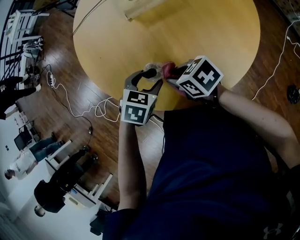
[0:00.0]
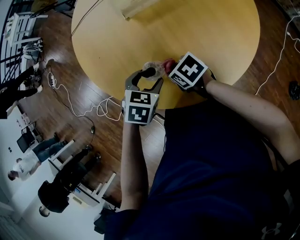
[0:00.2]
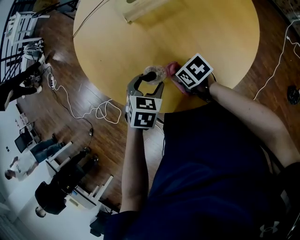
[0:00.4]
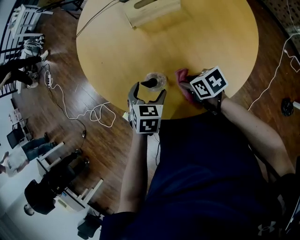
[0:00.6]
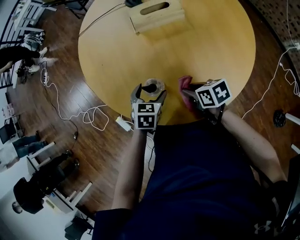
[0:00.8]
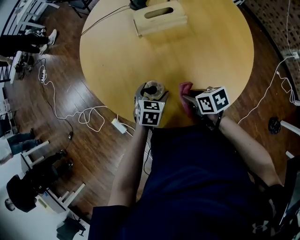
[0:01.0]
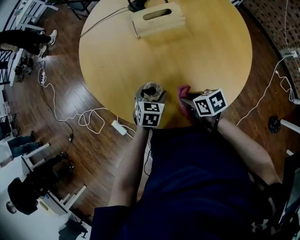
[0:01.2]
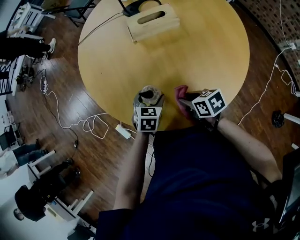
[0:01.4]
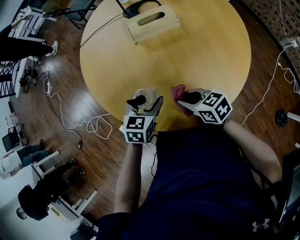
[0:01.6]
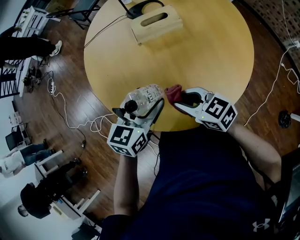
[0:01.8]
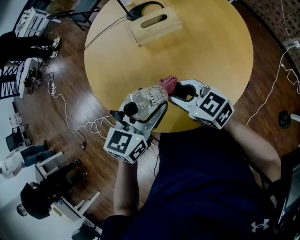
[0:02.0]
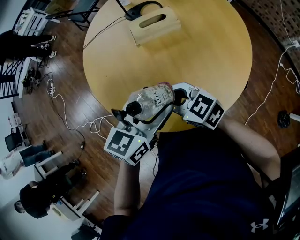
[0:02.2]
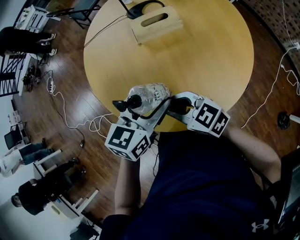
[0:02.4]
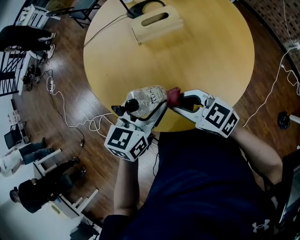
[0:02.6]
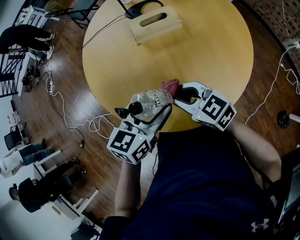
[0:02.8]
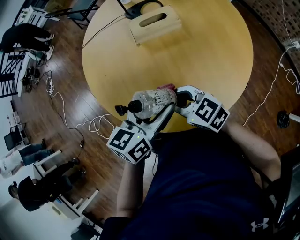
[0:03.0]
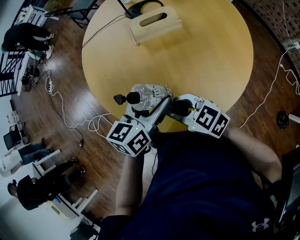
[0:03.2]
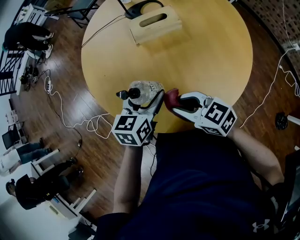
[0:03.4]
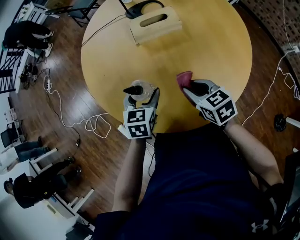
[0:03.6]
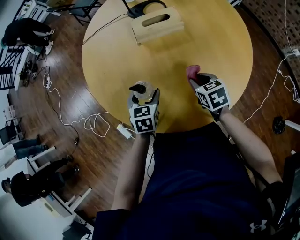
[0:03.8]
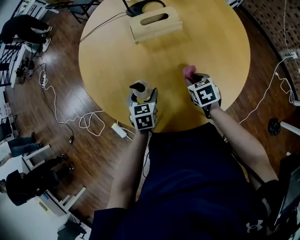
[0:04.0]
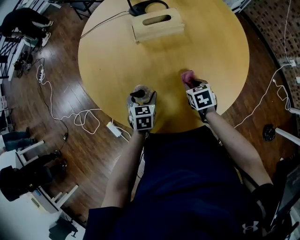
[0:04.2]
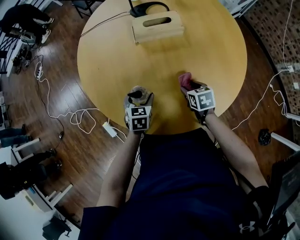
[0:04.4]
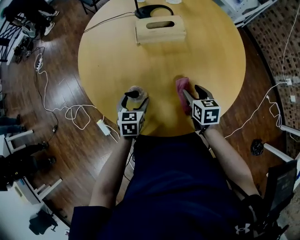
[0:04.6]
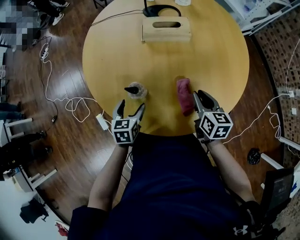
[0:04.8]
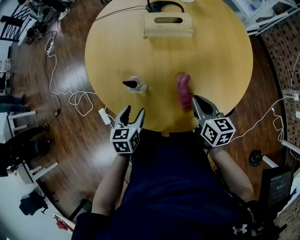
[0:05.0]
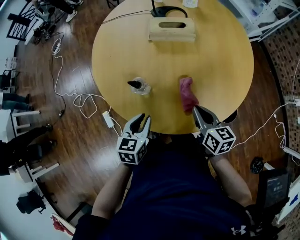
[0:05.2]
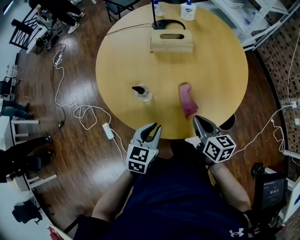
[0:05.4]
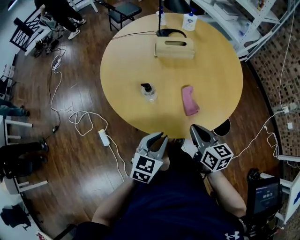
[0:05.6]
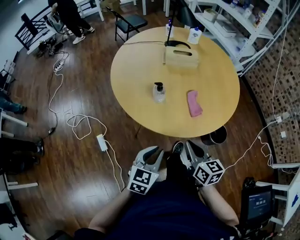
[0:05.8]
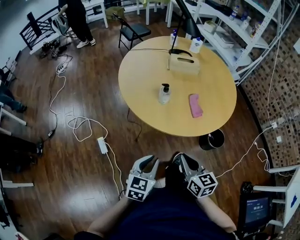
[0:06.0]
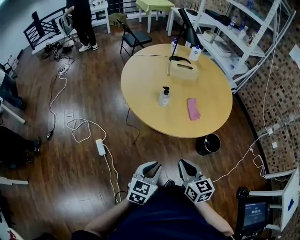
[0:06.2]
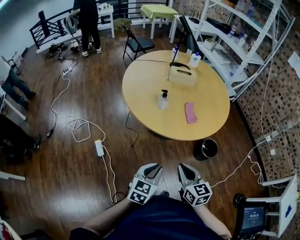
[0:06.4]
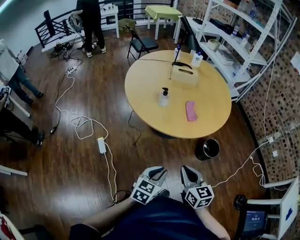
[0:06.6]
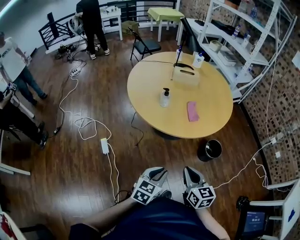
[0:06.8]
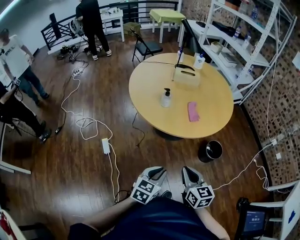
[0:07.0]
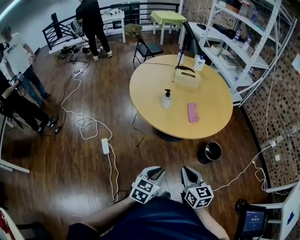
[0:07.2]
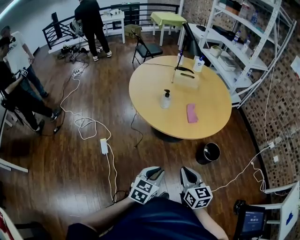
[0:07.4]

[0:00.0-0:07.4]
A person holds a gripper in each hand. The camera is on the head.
0:00.0 to 0:01.4: The left gripper is displaced downward by about 5 cm. Meanwhile the right gripper travels to the right and downward by roughly 5 cm.
0:01.4 to 0:03.0: The right gripper moves upward and to the left, roughly 15 cm, and turns by some 40 degrees. The left gripper goes some 20 cm upward, and angles its fingers upward, by some 30 degrees.
0:03.0 to 0:04.4: The left gripper is displaced downward by roughly 25 cm, and turns by approximately 40 degrees. The right gripper is displaced downward and to the right by about 25 cm, swivels about 40 degrees, and opens its fingers.
0:04.4 to 0:06.0: The left gripper moves backward and upward, approximately 35 cm, turns by approximately 20 degrees, and closes, while the right gripper heads backward, upward and to the left, covering roughly 40 cm, points its fingers some 30 degrees further upward, and closes its fingers.
0:06.0 to 0:07.4: Both grippers move backward and to the right, approximately 10 cm.

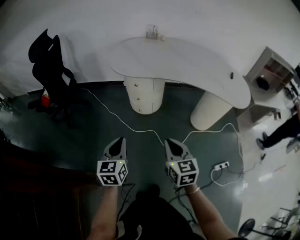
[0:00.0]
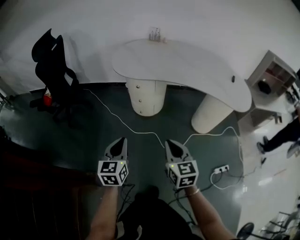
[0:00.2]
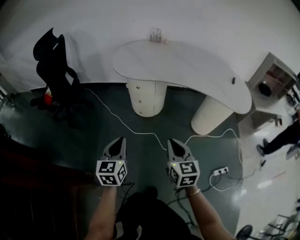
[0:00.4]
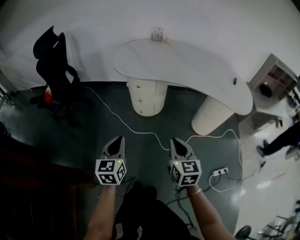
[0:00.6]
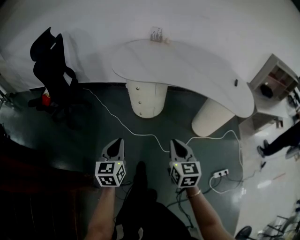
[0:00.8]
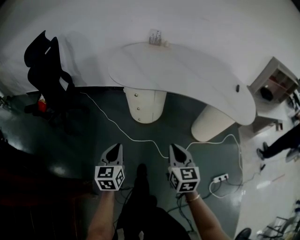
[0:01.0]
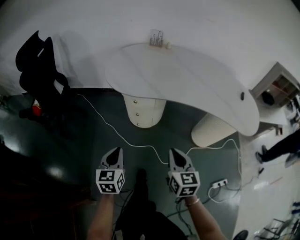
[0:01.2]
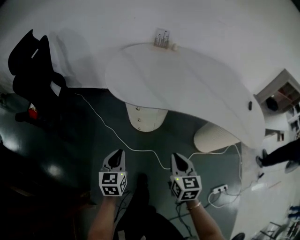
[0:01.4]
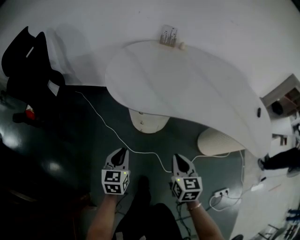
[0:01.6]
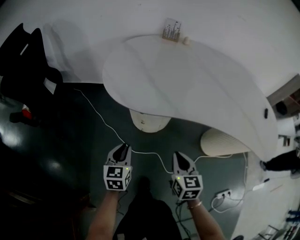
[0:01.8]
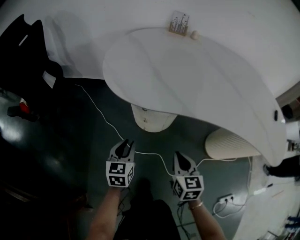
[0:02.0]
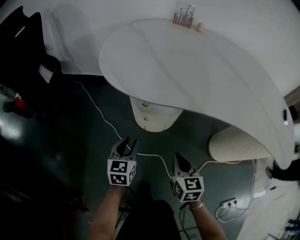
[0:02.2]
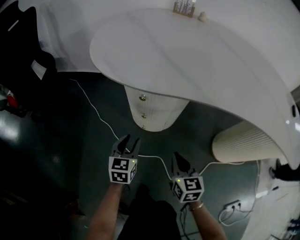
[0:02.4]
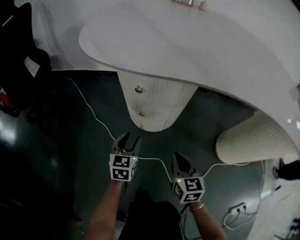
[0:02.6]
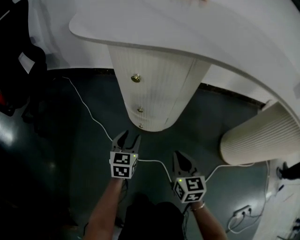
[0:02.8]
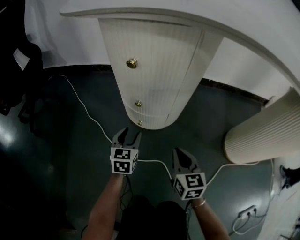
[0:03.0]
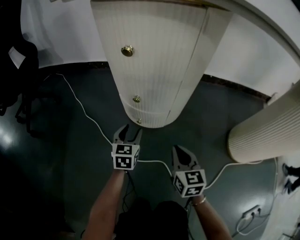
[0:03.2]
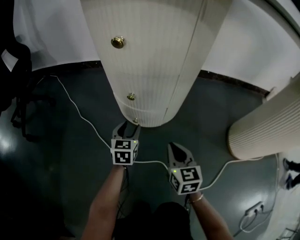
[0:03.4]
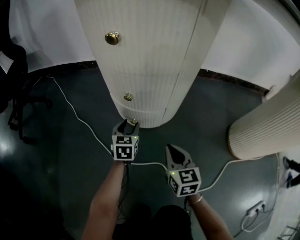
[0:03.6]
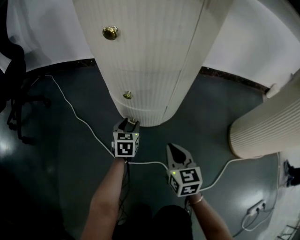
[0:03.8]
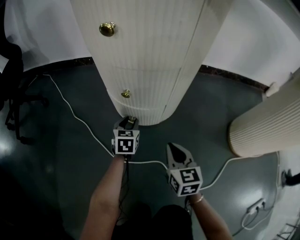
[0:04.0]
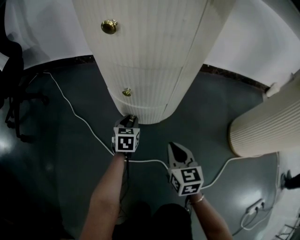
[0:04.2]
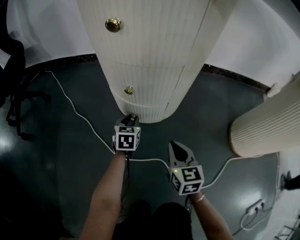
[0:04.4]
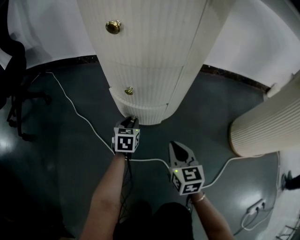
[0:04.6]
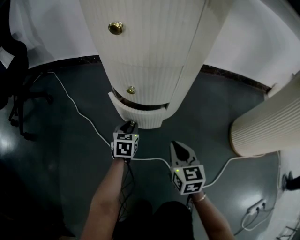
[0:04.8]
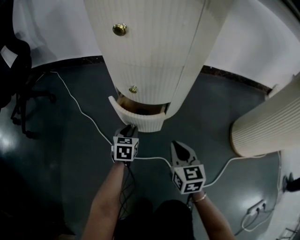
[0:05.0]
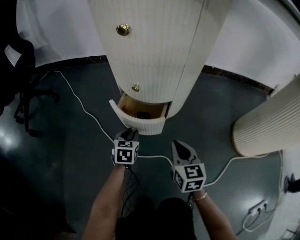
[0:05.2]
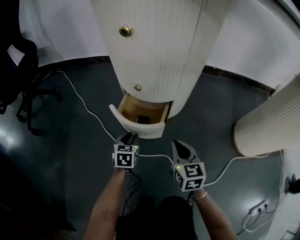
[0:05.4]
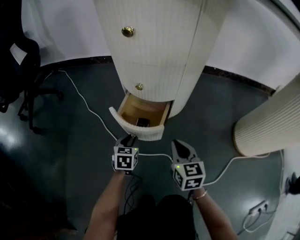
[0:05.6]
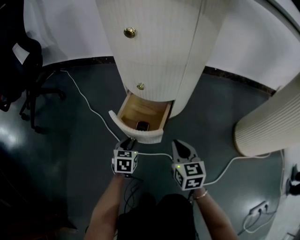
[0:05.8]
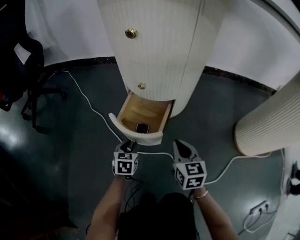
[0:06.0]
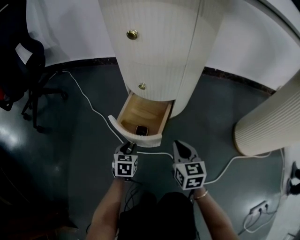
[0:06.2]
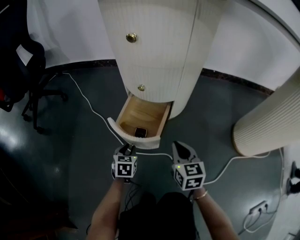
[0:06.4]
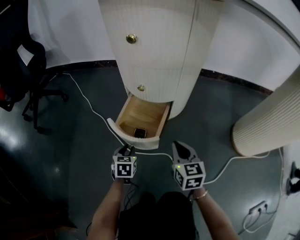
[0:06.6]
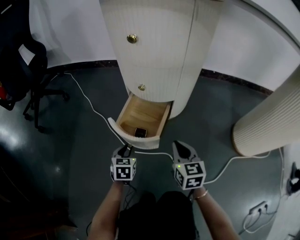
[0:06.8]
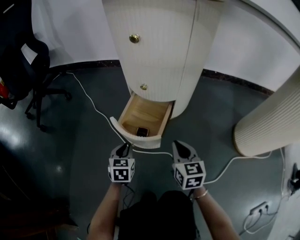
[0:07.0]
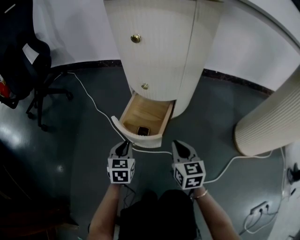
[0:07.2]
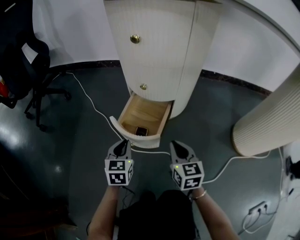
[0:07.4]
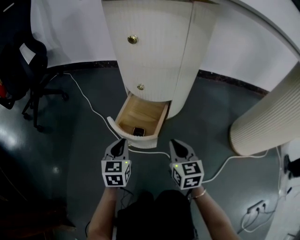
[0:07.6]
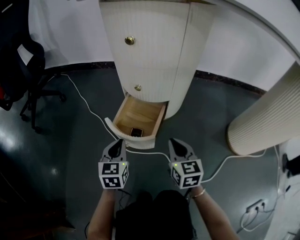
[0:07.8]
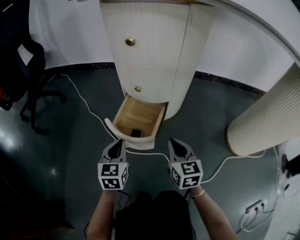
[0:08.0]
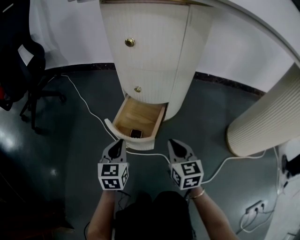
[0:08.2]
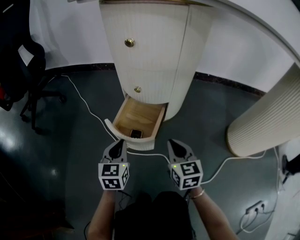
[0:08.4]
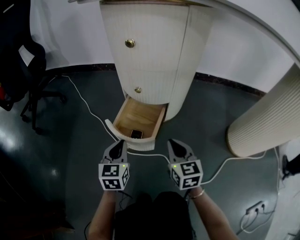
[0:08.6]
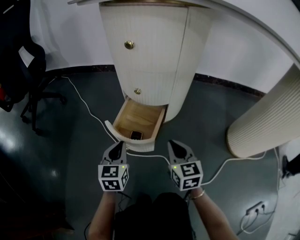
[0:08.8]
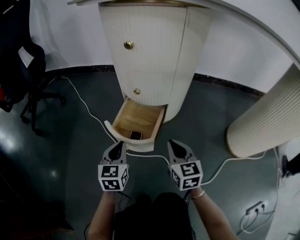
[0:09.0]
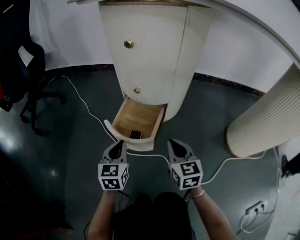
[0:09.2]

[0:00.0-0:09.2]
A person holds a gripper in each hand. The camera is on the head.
0:00.0 to 0:01.6: The left gripper shifts about 30 cm forward and downward. Meanwhile the right gripper is displaced forward by about 25 cm.
0:01.6 to 0:03.0: The grippers both shift downward by roughly 40 cm. The left gripper opens its fingers.
0:03.0 to 0:04.6: The left gripper heads downward and forward, covering about 15 cm, and closes up. The right gripper travels downward by roughly 10 cm.
0:04.6 to 0:06.2: The left gripper moves backward, some 15 cm.
0:06.2 to 0:07.6: The left gripper is displaced upward by some 15 cm.
0:07.6 to 0:09.2: The grippers move only a little.

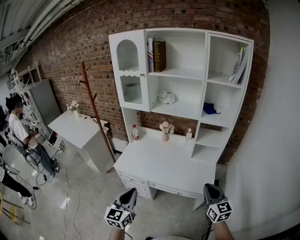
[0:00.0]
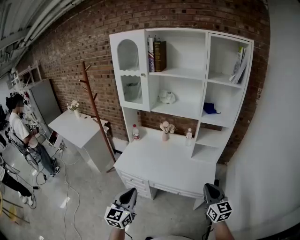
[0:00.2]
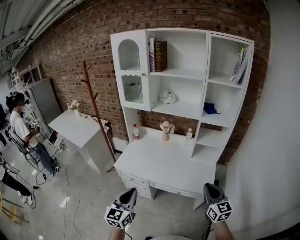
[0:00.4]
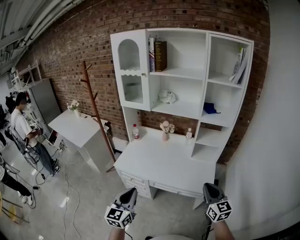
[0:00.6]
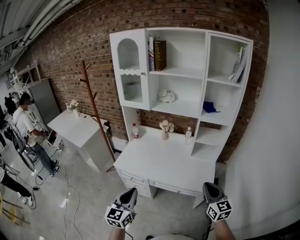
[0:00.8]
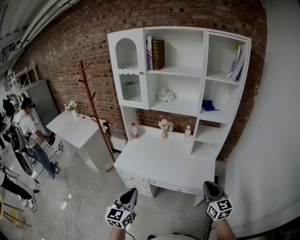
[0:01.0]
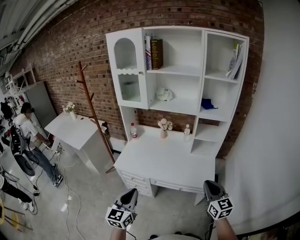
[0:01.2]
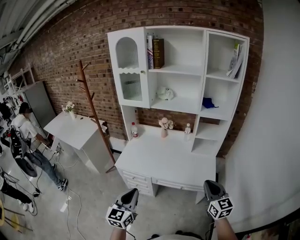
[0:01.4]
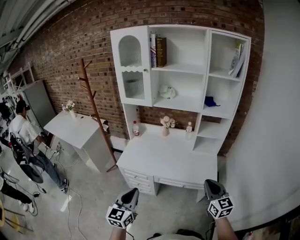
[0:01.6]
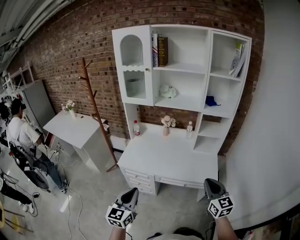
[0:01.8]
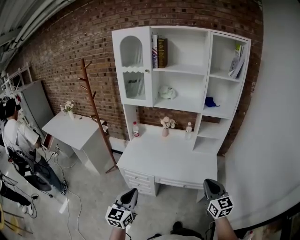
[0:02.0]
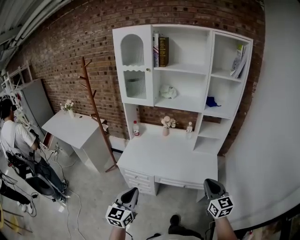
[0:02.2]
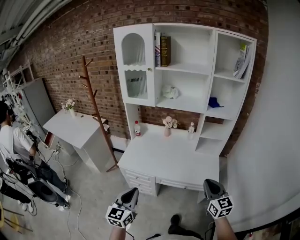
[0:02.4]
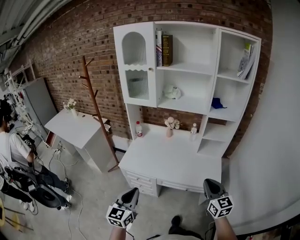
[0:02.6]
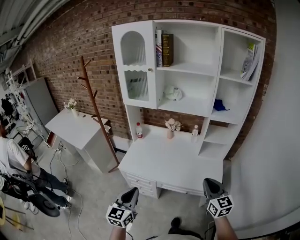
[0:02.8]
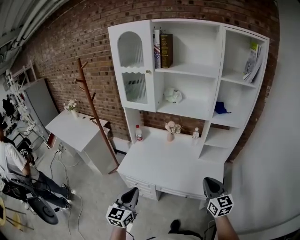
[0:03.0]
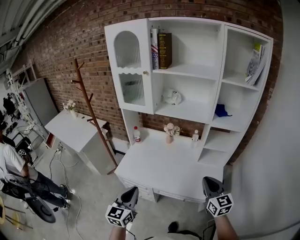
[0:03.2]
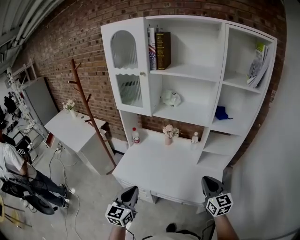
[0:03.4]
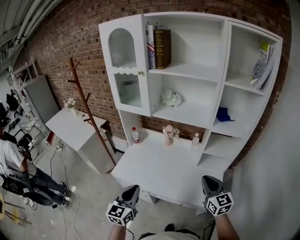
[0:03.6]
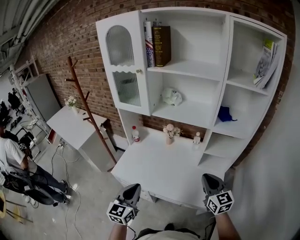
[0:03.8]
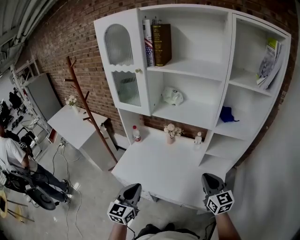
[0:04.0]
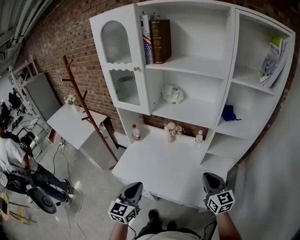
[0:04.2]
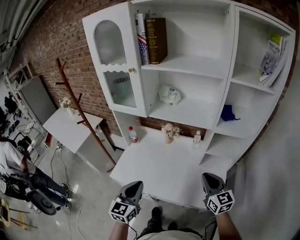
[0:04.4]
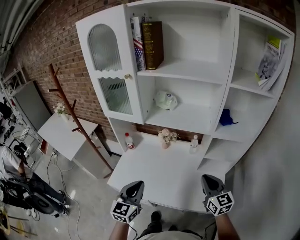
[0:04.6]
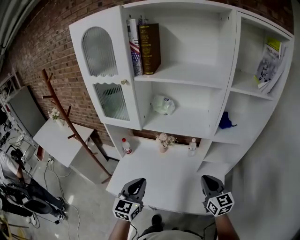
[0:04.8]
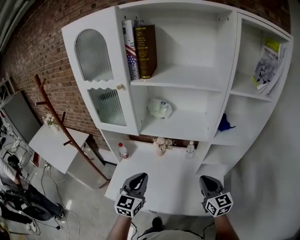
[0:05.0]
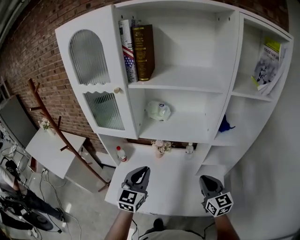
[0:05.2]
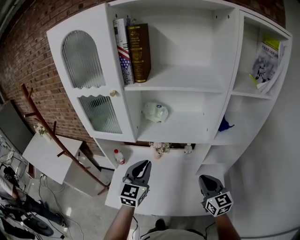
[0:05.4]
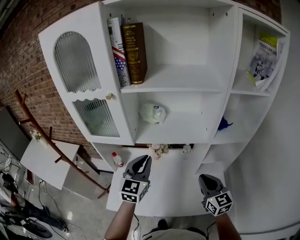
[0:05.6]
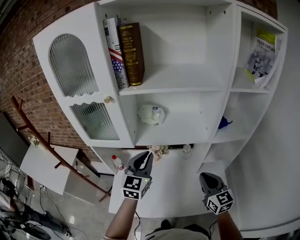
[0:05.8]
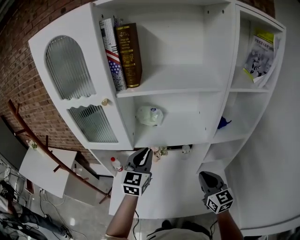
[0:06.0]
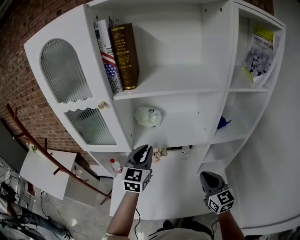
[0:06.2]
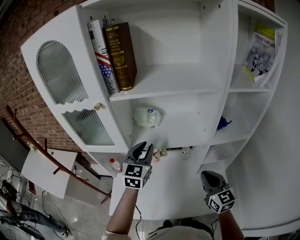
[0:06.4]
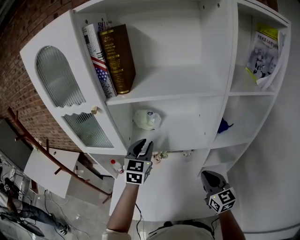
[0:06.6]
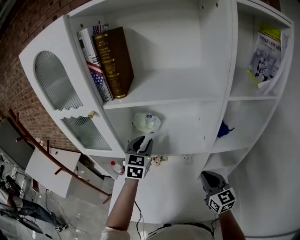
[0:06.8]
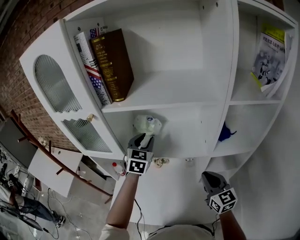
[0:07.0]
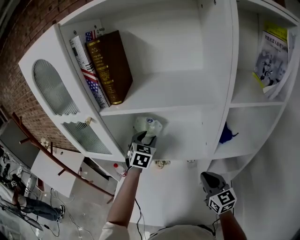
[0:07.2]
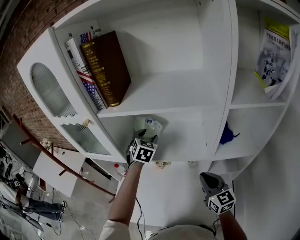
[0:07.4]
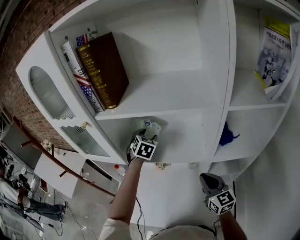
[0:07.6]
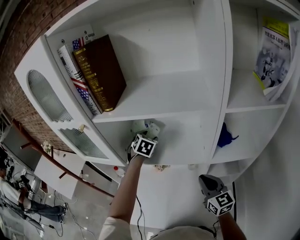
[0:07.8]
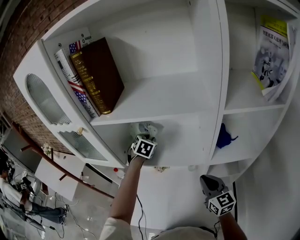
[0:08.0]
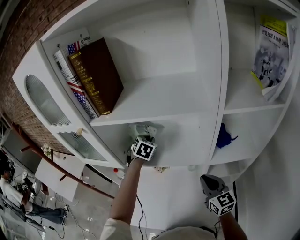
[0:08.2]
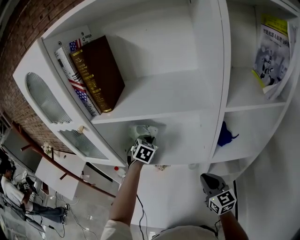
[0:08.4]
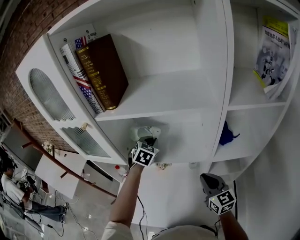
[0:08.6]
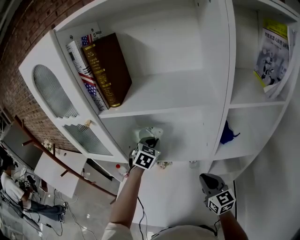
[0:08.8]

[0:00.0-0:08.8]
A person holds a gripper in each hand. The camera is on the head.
0:00.0 to 0:01.4: The right gripper shifts by about 5 cm.
0:01.4 to 0:03.0: Both grippers move forward, approximately 10 cm.
0:03.0 to 0:04.4: The right gripper moves forward, about 15 cm. Meanwhile the left gripper goes about 20 cm forward and to the right.
0:04.4 to 0:05.8: The left gripper travels forward by approximately 30 cm, and turns by some 20 degrees. Meanwhile the right gripper travels forward and to the left by approximately 10 cm.
0:05.8 to 0:07.4: The right gripper travels forward by approximately 10 cm. The left gripper is displaced forward by approximately 20 cm, changes its angle by some 30 degrees, and opens its fingers.
0:07.4 to 0:08.8: The left gripper closes.
